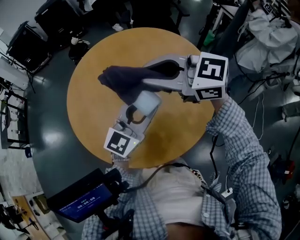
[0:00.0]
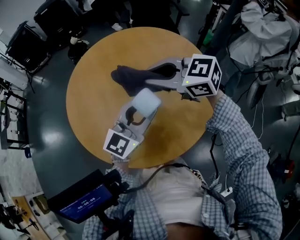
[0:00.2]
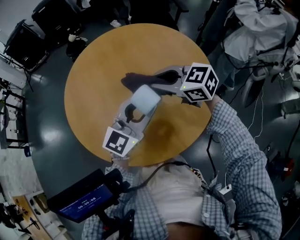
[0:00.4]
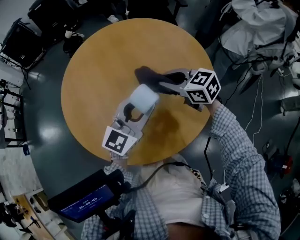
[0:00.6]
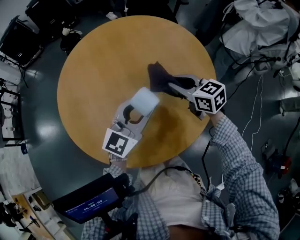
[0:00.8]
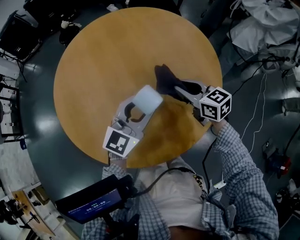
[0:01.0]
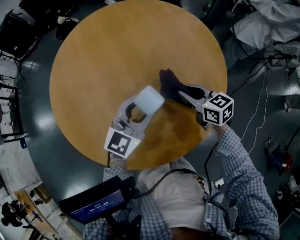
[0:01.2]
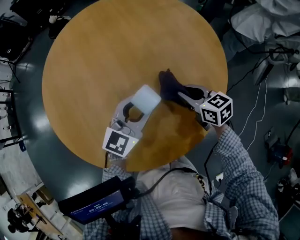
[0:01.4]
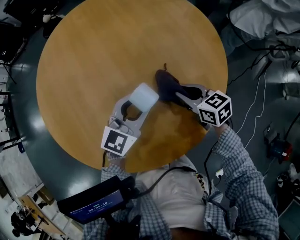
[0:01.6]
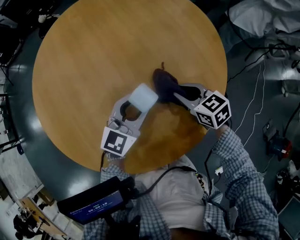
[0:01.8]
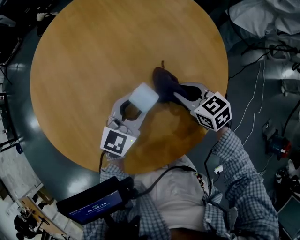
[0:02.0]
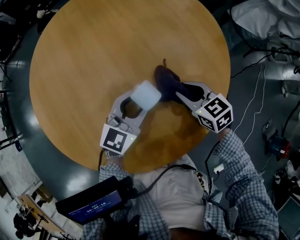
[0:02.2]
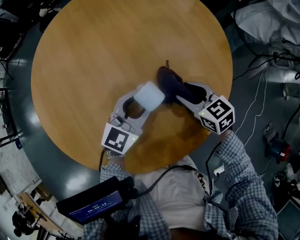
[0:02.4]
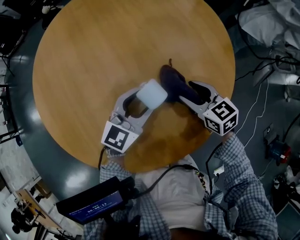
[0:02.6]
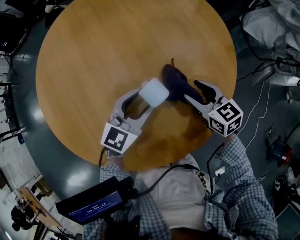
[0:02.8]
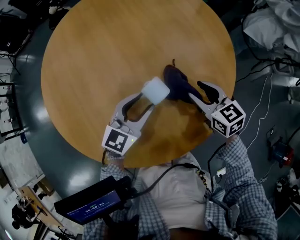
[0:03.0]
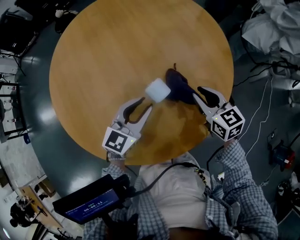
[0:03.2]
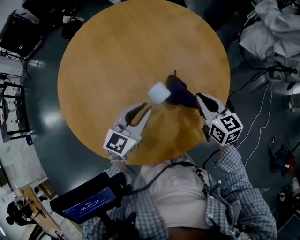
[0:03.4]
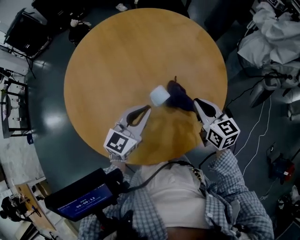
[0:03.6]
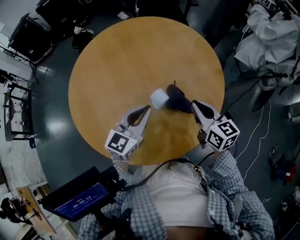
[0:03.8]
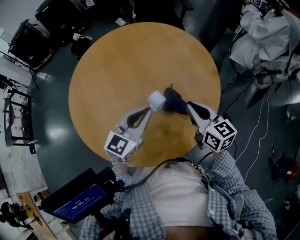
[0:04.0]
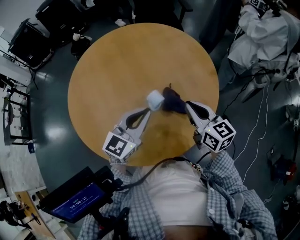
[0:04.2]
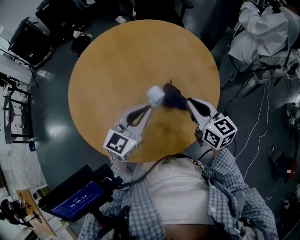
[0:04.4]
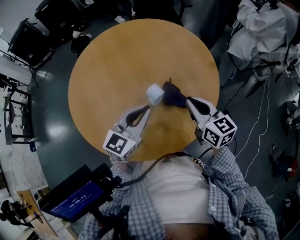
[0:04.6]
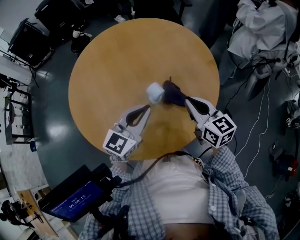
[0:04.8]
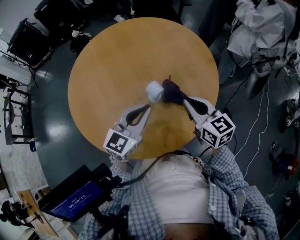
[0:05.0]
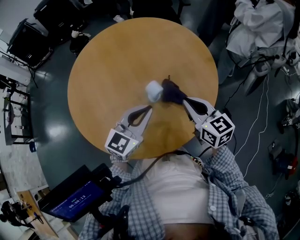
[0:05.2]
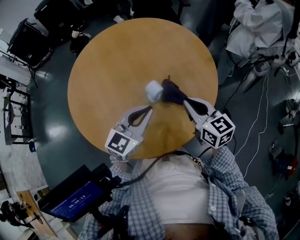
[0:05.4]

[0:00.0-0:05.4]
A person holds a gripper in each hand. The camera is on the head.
0:00.0 to 0:01.4: The right gripper is displaced downward and to the right by some 35 cm, and changes its angle by approximately 50 degrees; the left gripper moves downward, approximately 15 cm.
0:01.4 to 0:02.8: The right gripper opens its fingers, while the left gripper heads downward, covering roughly 5 cm.
0:02.8 to 0:04.0: The grippers both shift upward by roughly 15 cm. The left gripper closes its fingers. Meanwhile the right gripper rotates approximately 20 degrees, and closes.
0:04.0 to 0:05.4: The grippers stay close to where they were, moving slightly.

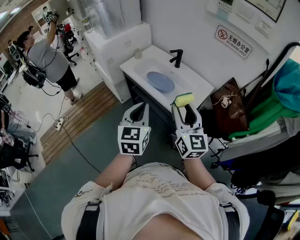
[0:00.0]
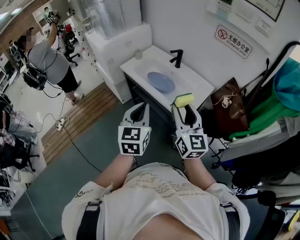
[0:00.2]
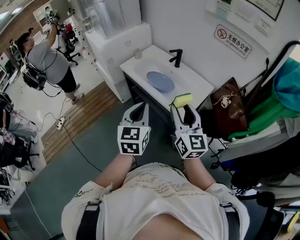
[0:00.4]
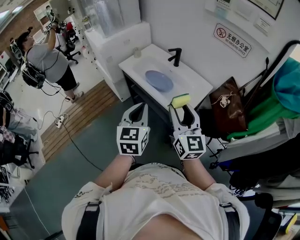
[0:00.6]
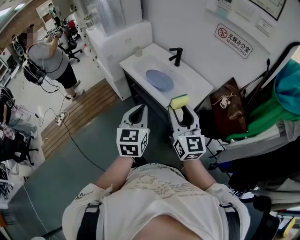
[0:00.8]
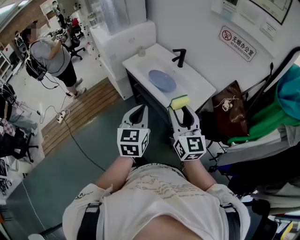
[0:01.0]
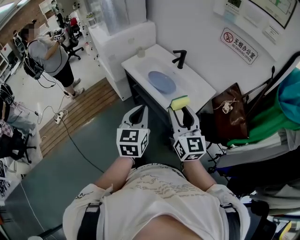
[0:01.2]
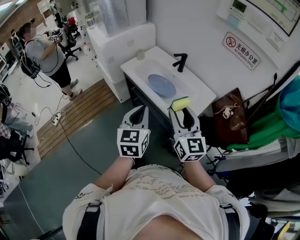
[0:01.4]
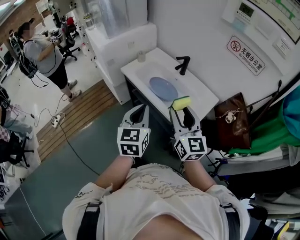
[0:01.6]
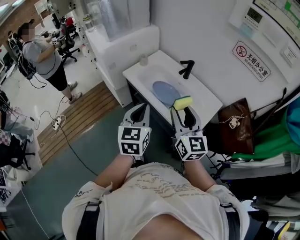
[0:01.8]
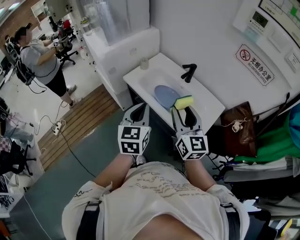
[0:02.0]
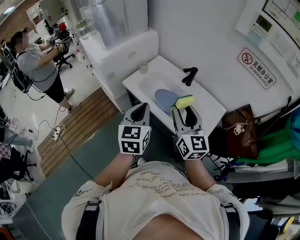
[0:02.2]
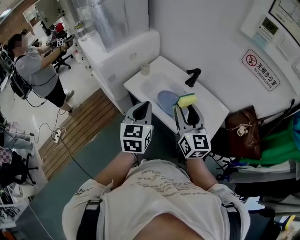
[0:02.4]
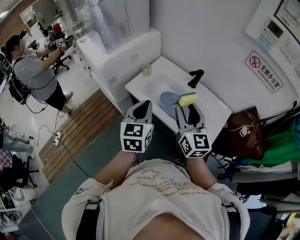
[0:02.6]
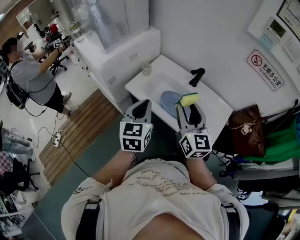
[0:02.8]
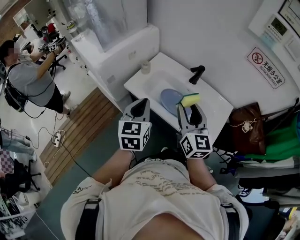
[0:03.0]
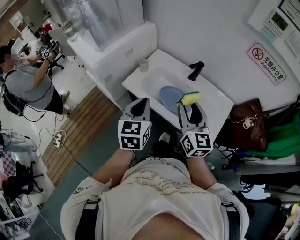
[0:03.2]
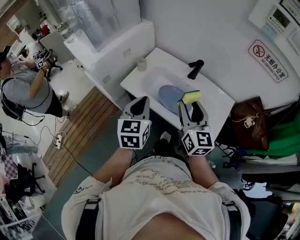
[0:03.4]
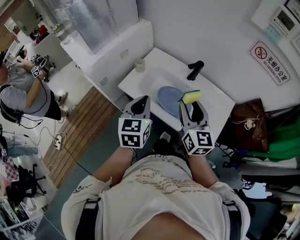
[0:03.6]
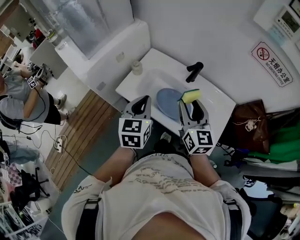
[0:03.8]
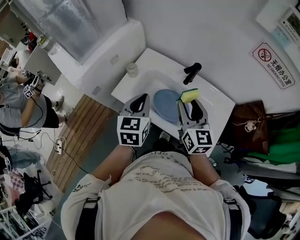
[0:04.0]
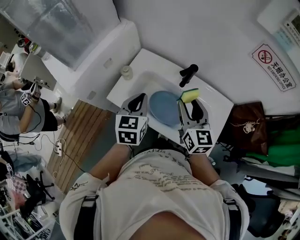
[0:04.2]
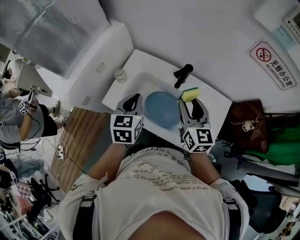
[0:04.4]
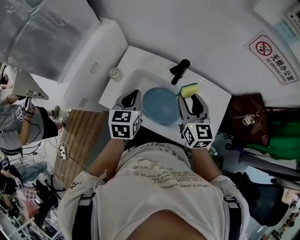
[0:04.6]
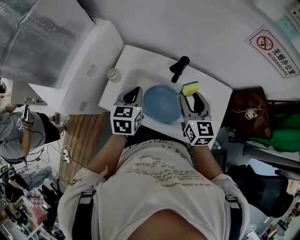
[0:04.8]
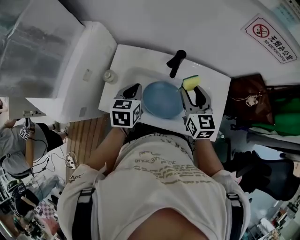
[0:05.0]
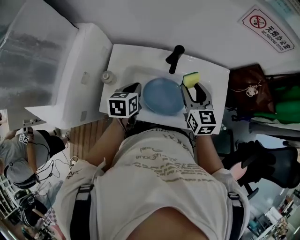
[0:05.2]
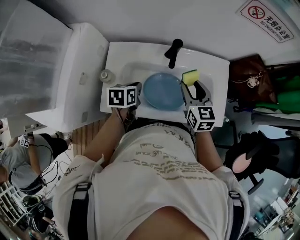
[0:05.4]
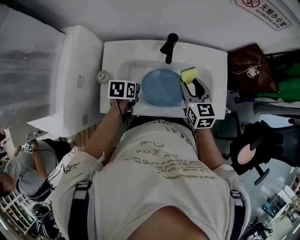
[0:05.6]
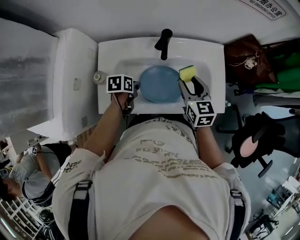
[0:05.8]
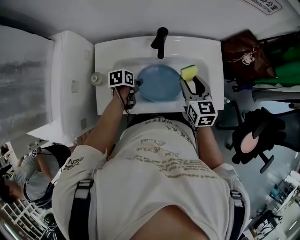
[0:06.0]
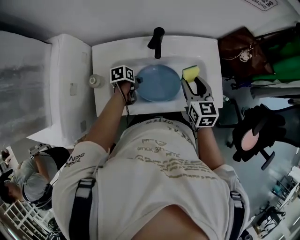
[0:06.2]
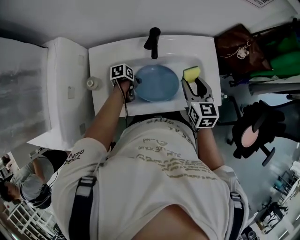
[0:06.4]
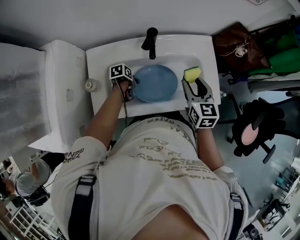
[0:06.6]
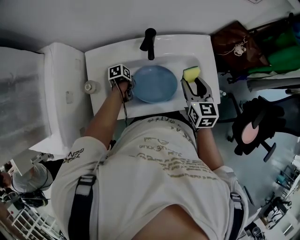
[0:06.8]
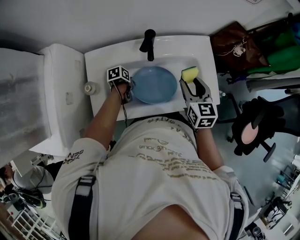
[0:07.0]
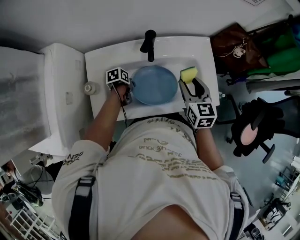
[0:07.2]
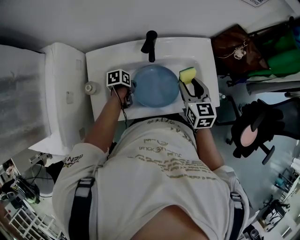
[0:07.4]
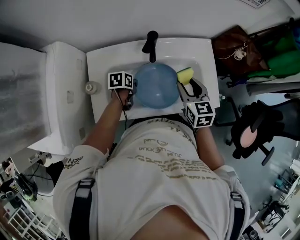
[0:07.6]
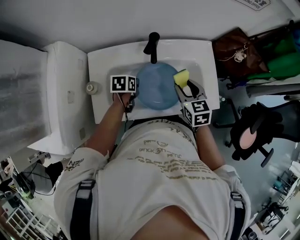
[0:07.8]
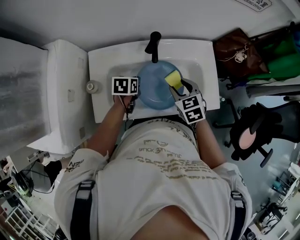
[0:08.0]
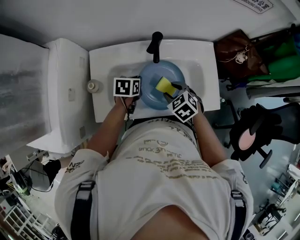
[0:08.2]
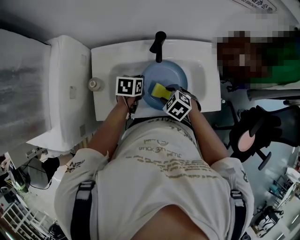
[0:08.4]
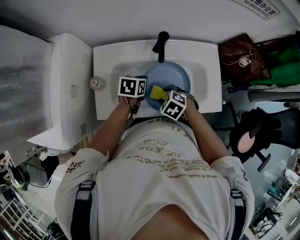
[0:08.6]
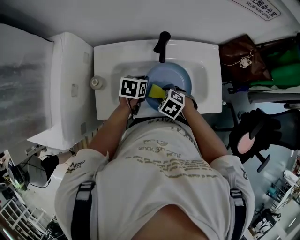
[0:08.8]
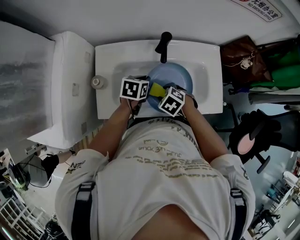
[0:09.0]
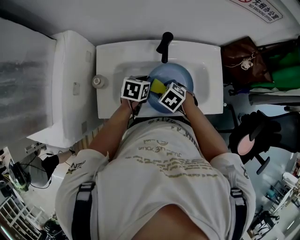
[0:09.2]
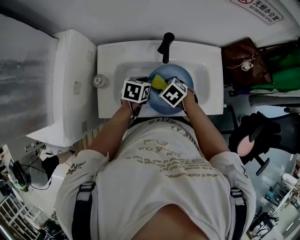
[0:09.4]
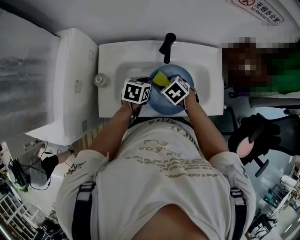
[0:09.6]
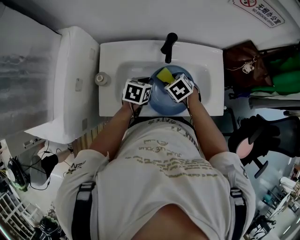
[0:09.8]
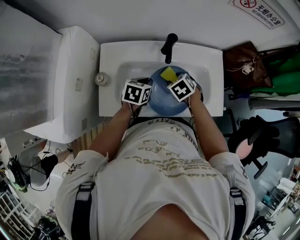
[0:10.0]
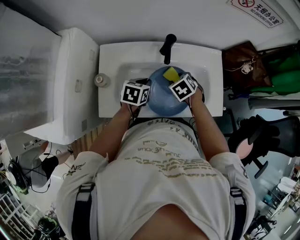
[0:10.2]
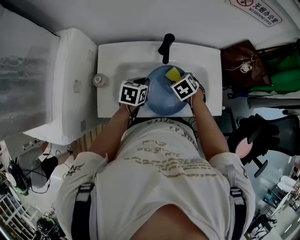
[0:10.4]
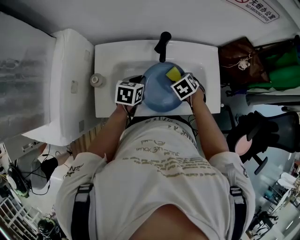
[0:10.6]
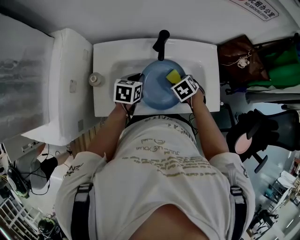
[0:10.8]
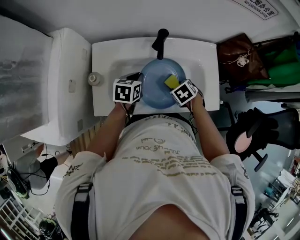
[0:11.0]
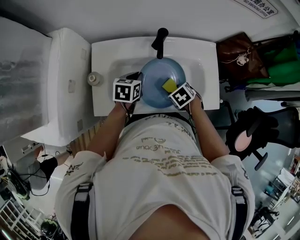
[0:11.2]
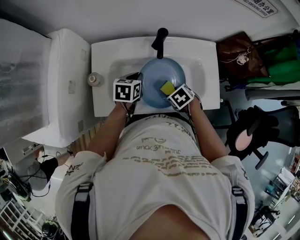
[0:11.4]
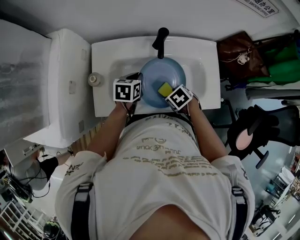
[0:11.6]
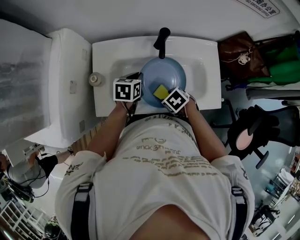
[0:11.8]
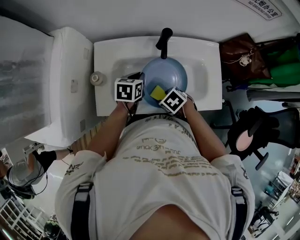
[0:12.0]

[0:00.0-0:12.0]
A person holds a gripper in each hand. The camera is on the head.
0:00.0 to 0:01.6: The two grippers go approximately 10 cm forward.
0:01.6 to 0:03.0: Both grippers travel together forward and to the left, some 20 cm.
0:03.0 to 0:04.4: The left gripper heads forward and downward, covering approximately 20 cm. The right gripper heads forward, to the right and downward, covering some 20 cm.
0:04.4 to 0:06.0: The right gripper moves downward, about 10 cm, and rotates about 30 degrees; the left gripper is displaced downward by about 25 cm, rotates approximately 60 degrees, and opens its fingers.
0:06.0 to 0:07.6: The left gripper closes.
0:07.6 to 0:09.0: The left gripper goes roughly 5 cm upward, and rotates about 20 degrees. The right gripper moves approximately 20 cm, and tips its fingers downward by approximately 40 degrees.
0:09.0 to 0:10.4: The right gripper heads forward and to the right, covering some 10 cm, and changes its angle by roughly 20 degrees.
0:10.4 to 0:12.0: The right gripper changes place by about 15 cm, and changes its angle by about 20 degrees.

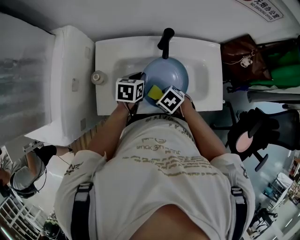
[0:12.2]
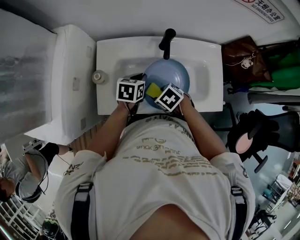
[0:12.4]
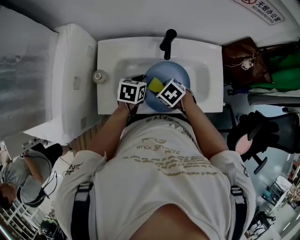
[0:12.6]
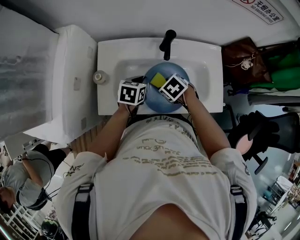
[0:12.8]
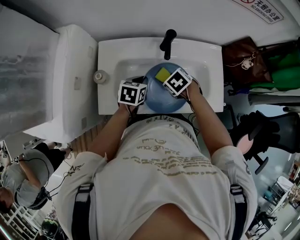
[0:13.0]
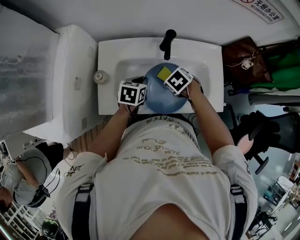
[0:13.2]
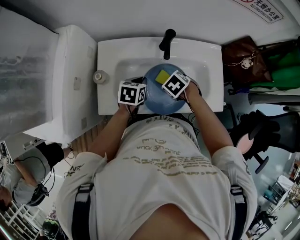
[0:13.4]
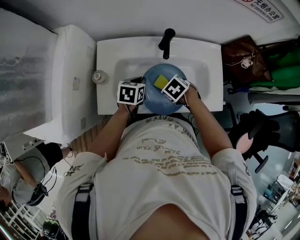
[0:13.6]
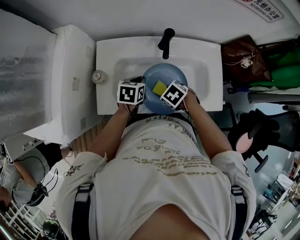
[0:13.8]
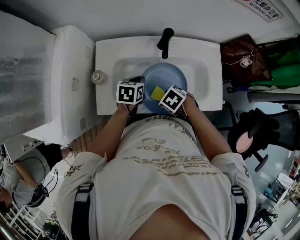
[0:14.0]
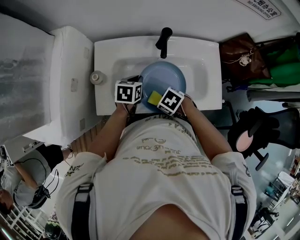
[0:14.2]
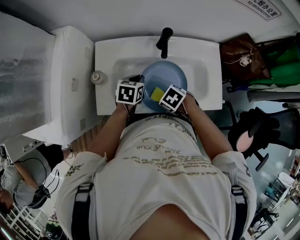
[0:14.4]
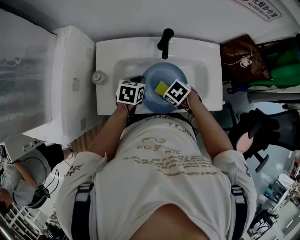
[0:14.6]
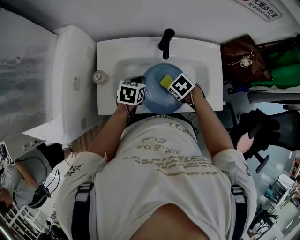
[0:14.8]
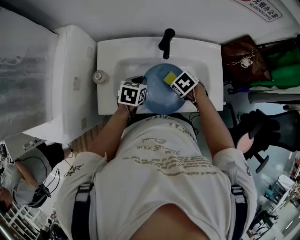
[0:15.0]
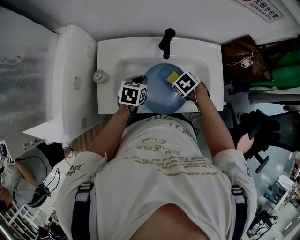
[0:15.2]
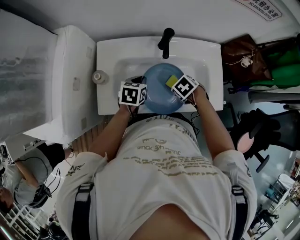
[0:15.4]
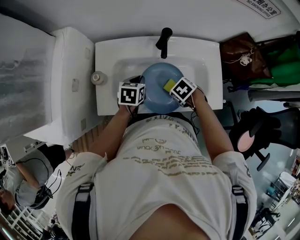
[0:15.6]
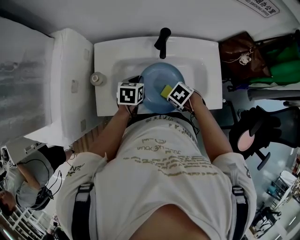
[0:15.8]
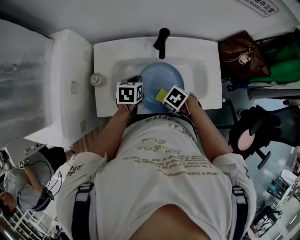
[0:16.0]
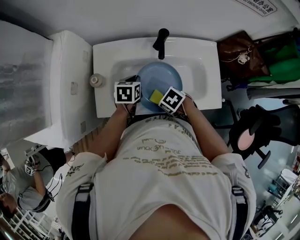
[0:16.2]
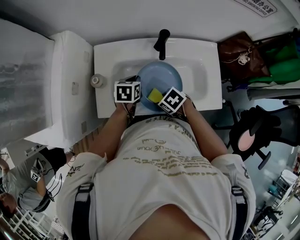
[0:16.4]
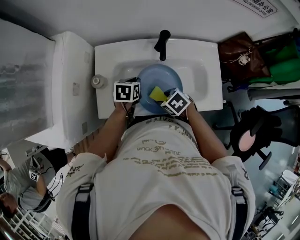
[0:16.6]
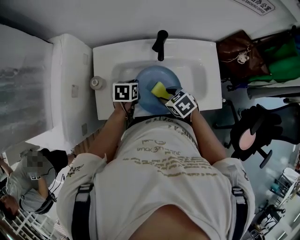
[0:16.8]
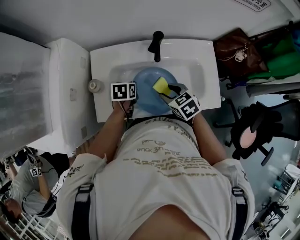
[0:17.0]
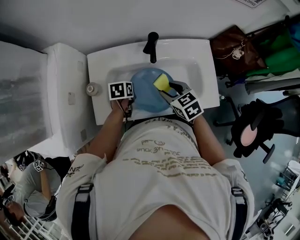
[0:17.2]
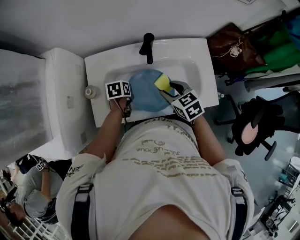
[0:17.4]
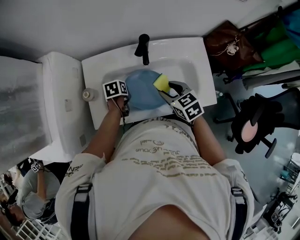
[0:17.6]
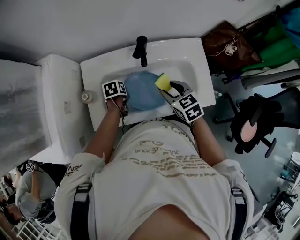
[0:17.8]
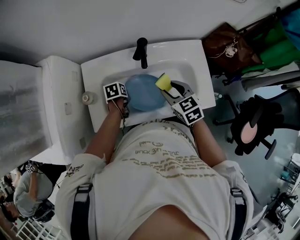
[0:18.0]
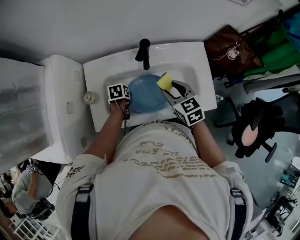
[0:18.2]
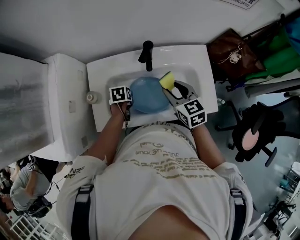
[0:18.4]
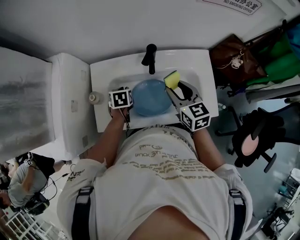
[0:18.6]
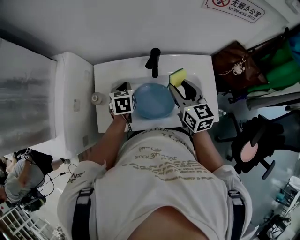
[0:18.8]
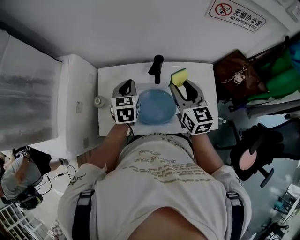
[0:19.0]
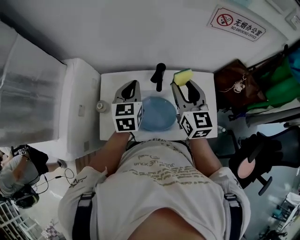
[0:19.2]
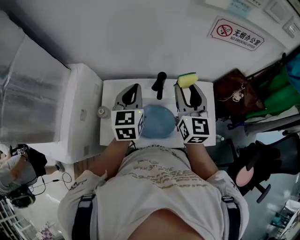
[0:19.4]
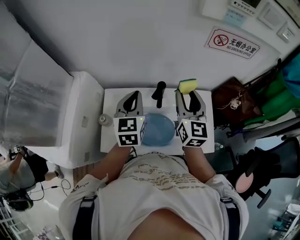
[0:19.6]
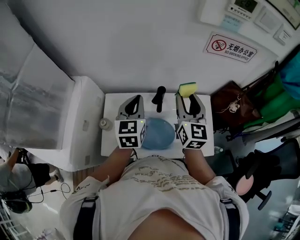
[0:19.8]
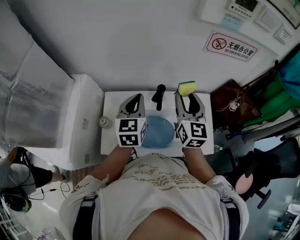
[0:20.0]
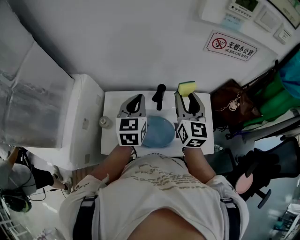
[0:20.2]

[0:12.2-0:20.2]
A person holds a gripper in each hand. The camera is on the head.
0:13.8 to 0:15.4: The right gripper shifts by roughly 10 cm.
0:15.4 to 0:17.0: The right gripper travels upward by roughly 5 cm, and tilts its fingers some 30 degrees upward.
0:17.0 to 0:18.6: The right gripper shifts approximately 15 cm upward, to the right and forward, and rotates about 30 degrees. The left gripper travels downward and back again, roughly 5 cm each way, and opens, then closes again.
0:18.6 to 0:20.2: The right gripper travels upward and forward by some 15 cm, and turns by approximately 30 degrees, while the left gripper moves upward, some 25 cm, and tips its fingers upward by some 40 degrees.
